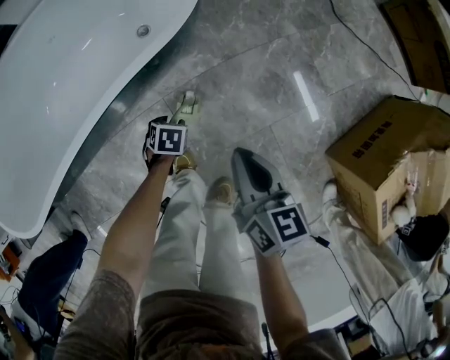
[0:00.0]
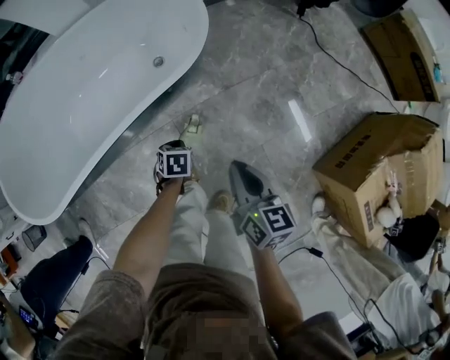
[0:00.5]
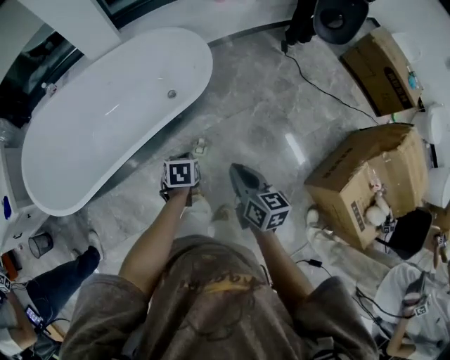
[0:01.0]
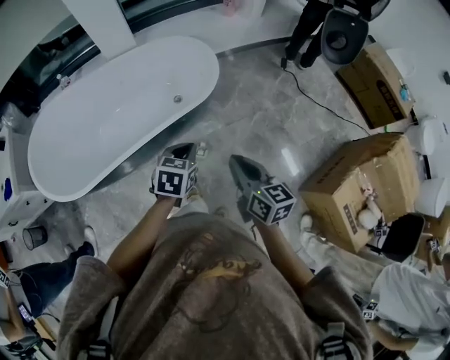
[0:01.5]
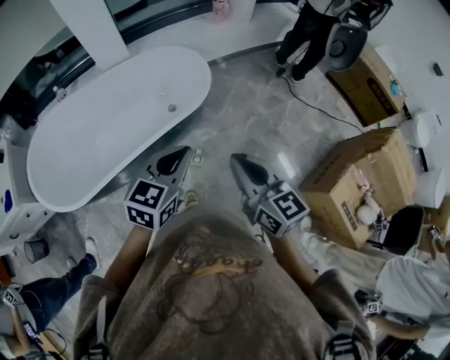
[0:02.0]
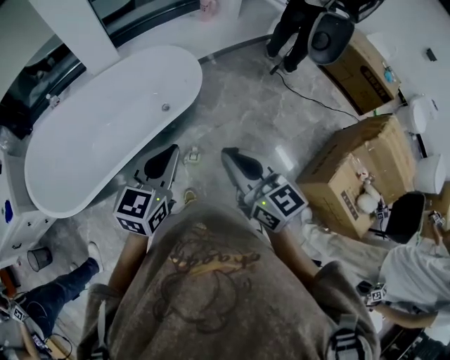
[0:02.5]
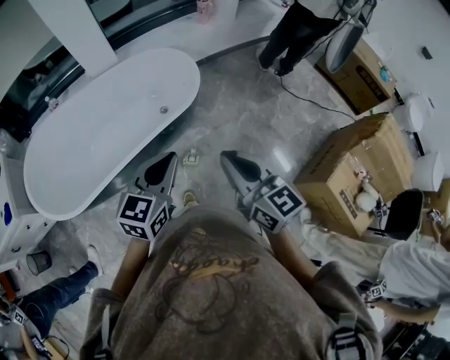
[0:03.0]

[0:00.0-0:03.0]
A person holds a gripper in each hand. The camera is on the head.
0:00.0 to 0:01.5: The right gripper heads upward, covering some 30 cm; the left gripper heads upward, covering about 50 cm, tilts its fingers about 30 degrees upward, and closes up.
0:01.5 to 0:03.0: Both grippers travel together upward, about 15 cm. The left gripper changes its angle by about 30 degrees.

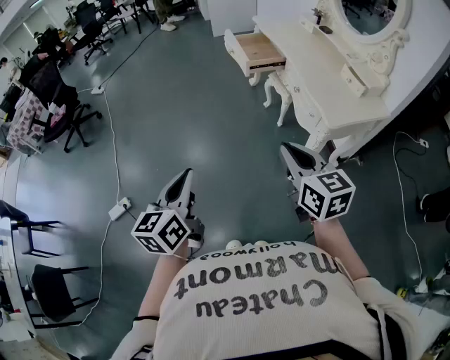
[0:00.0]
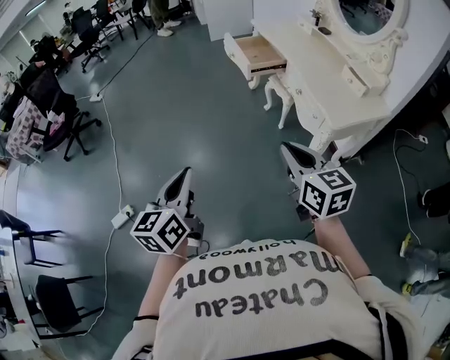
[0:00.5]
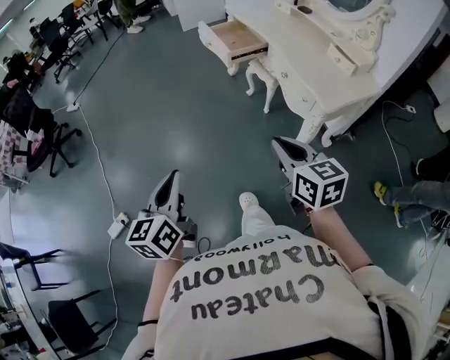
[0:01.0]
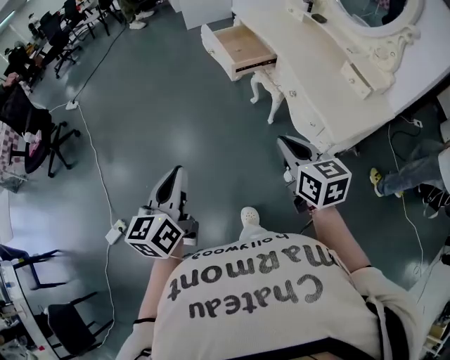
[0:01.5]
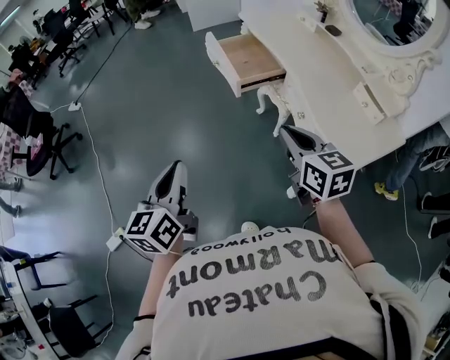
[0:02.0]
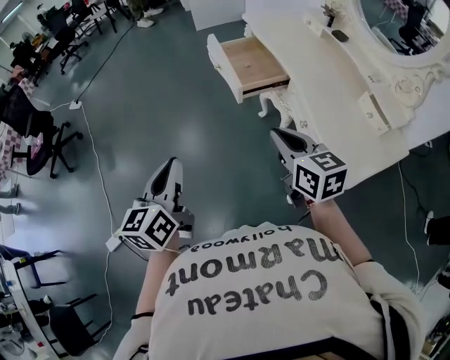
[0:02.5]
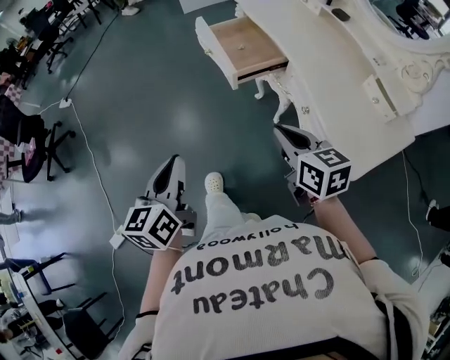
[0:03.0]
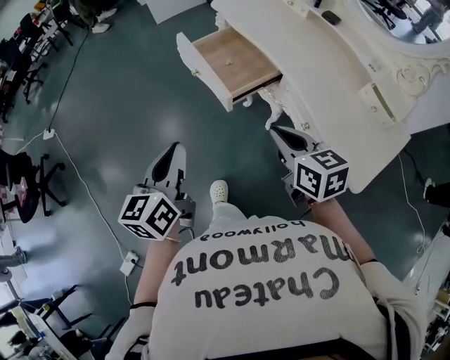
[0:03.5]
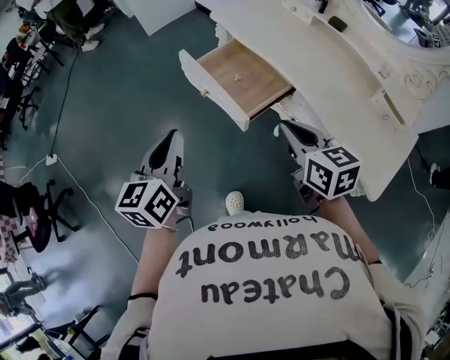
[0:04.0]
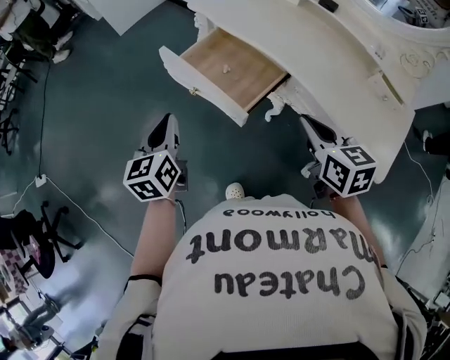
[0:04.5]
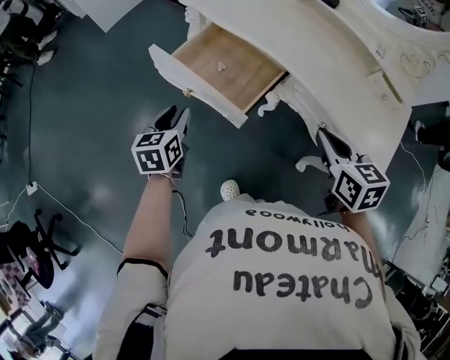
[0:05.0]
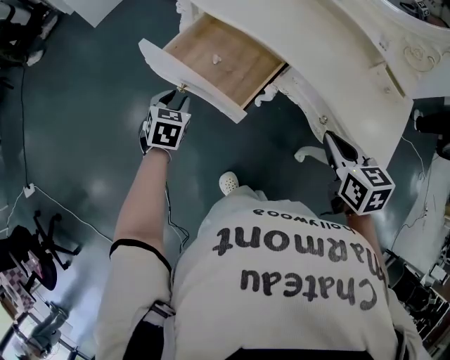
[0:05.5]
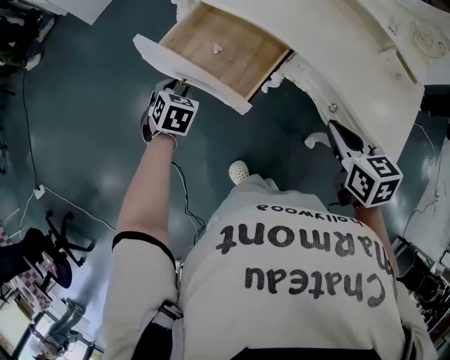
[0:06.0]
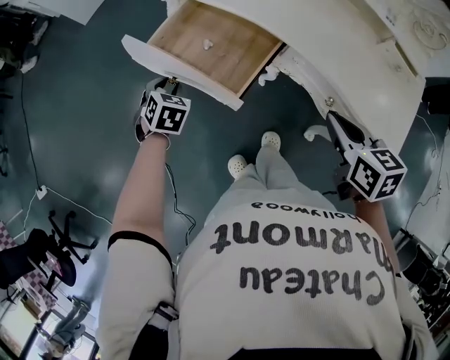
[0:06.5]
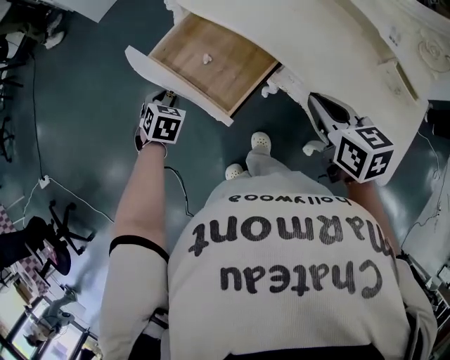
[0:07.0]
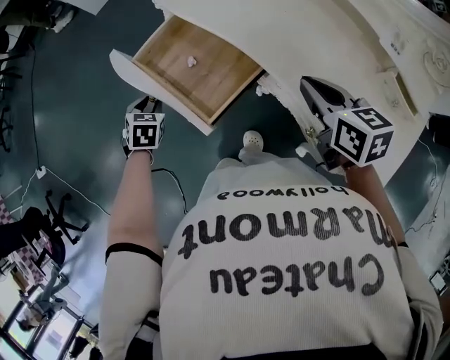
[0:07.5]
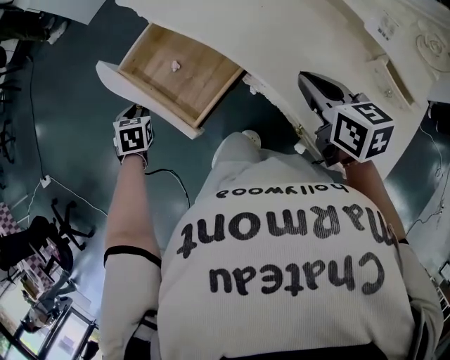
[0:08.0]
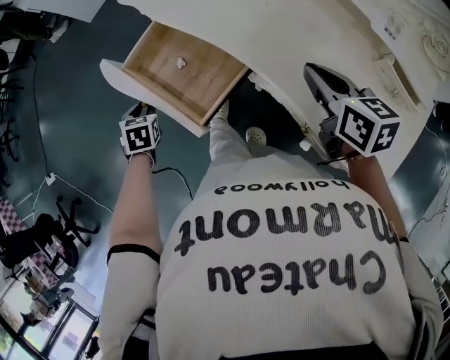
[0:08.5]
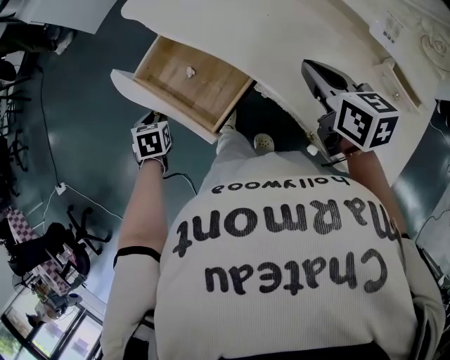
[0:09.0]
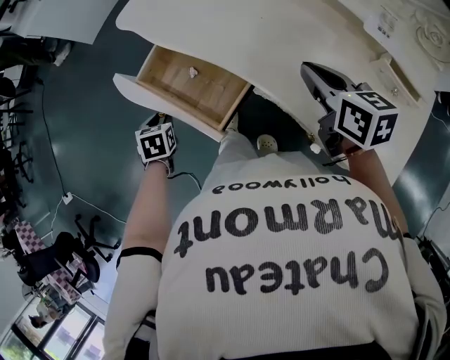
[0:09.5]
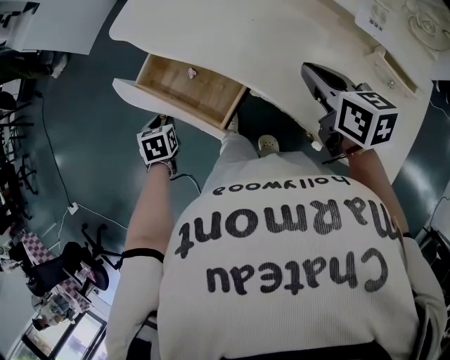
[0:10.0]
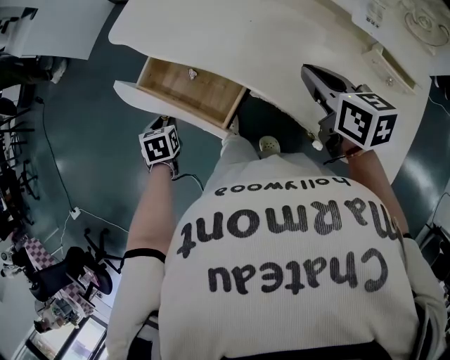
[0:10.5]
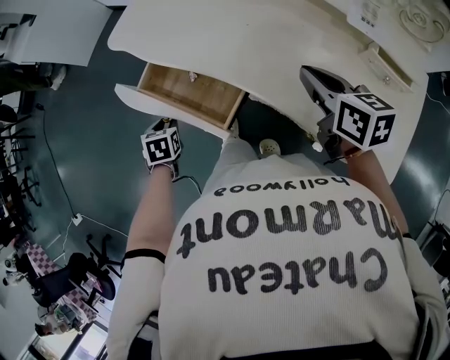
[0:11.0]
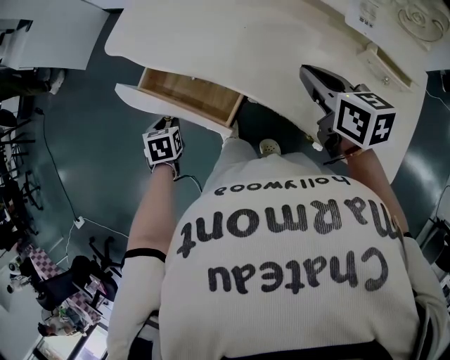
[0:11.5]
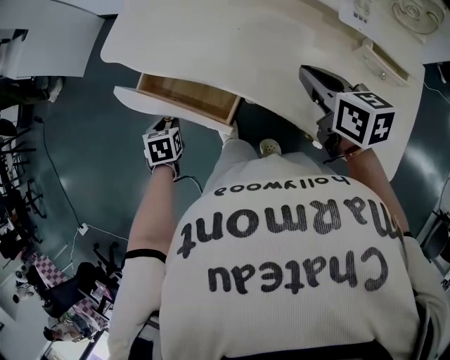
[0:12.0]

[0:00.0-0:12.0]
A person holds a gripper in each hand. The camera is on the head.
0:00.0 to 0:02.0: Both grippers move forward, roughly 30 cm.
0:02.0 to 0:04.0: The left gripper goes approximately 35 cm forward, and turns by about 20 degrees. Meanwhile the right gripper moves forward, roughly 25 cm.
0:04.0 to 0:06.0: The left gripper moves downward and forward, approximately 35 cm, tilts its fingers some 40 degrees downward, and opens, while the right gripper shifts about 10 cm to the right and downward, and turns by about 30 degrees.
0:06.0 to 0:08.0: The right gripper goes about 20 cm forward and to the right. Meanwhile the left gripper swivels approximately 30 degrees.
0:08.0 to 0:10.0: The left gripper shifts some 5 cm to the right.
0:10.0 to 0:12.0: The grippers move only a little.

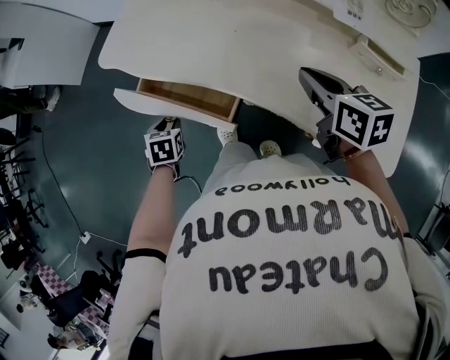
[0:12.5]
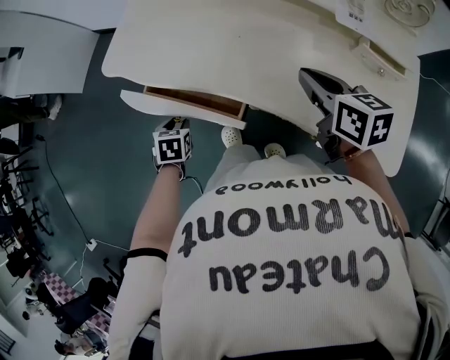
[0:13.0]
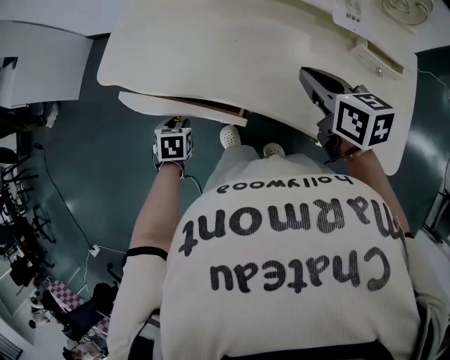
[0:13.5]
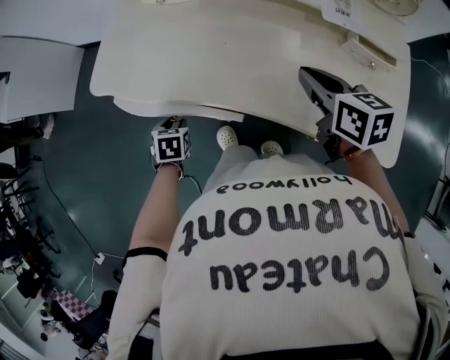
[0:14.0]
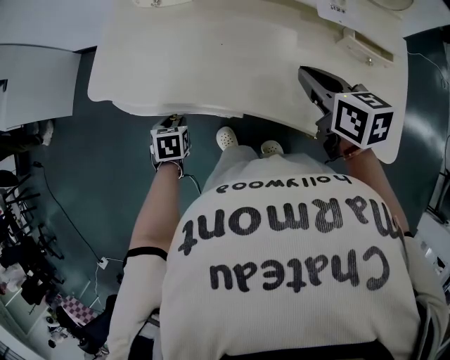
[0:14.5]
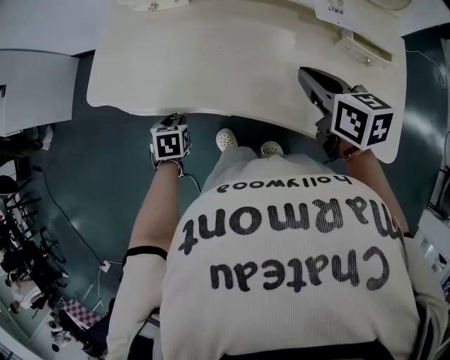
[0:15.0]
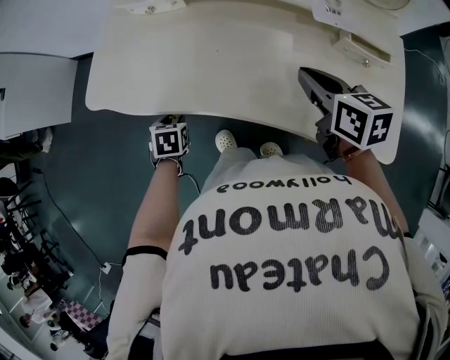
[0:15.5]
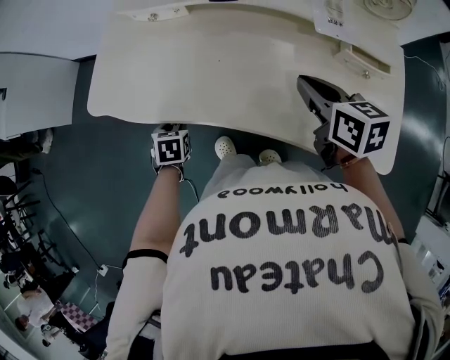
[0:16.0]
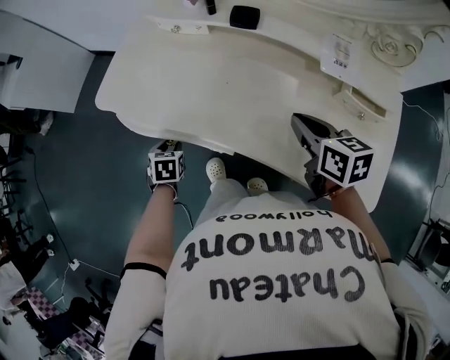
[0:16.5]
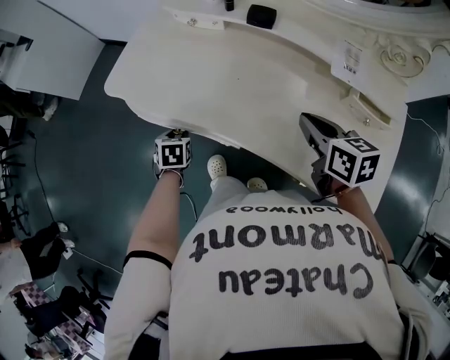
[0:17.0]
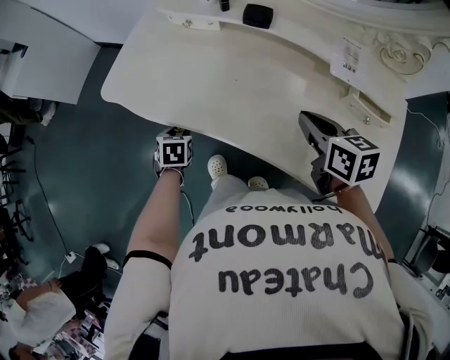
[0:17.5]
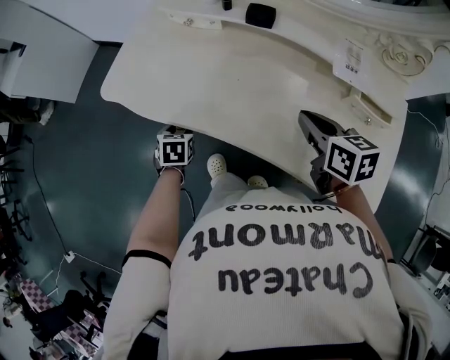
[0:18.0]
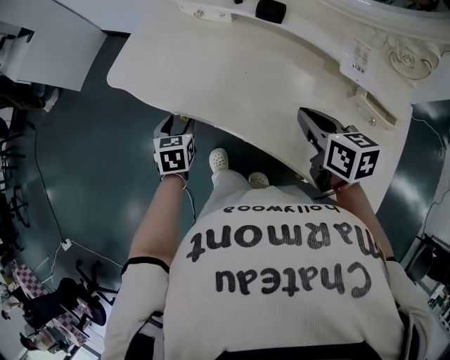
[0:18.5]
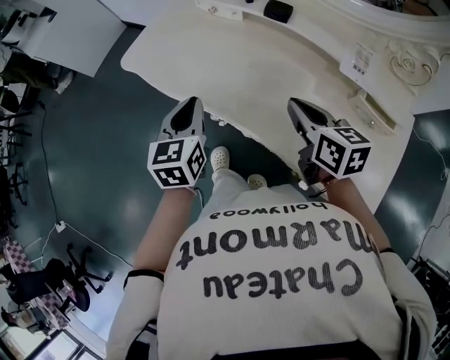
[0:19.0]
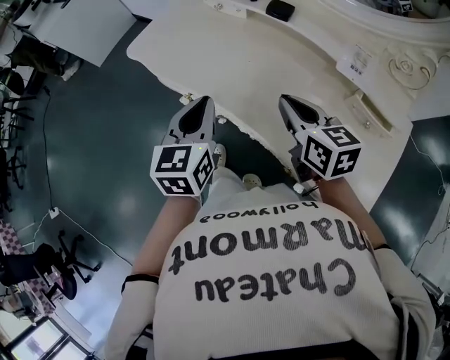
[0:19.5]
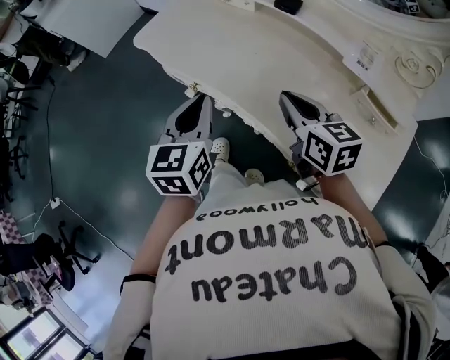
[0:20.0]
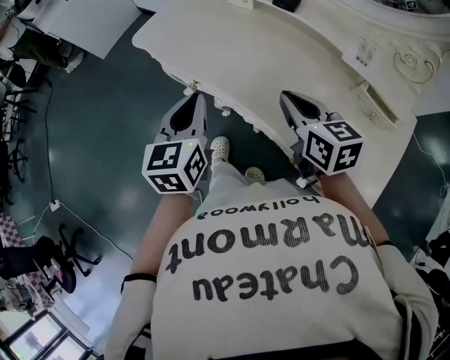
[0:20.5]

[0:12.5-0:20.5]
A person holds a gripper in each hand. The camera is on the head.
0:12.5 to 0:14.5: The left gripper moves forward and to the right, roughly 10 cm.
0:14.5 to 0:16.5: There are only small adjustments of the grippers.
0:16.5 to 0:18.5: The left gripper goes roughly 5 cm upward, and opens up.
0:18.5 to 0:20.5: The left gripper goes approximately 20 cm upward and backward, changes its angle by some 30 degrees, and closes its fingers. Meanwhile the right gripper heads to the left, covering roughly 5 cm.

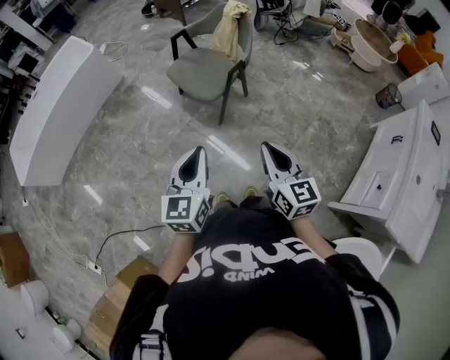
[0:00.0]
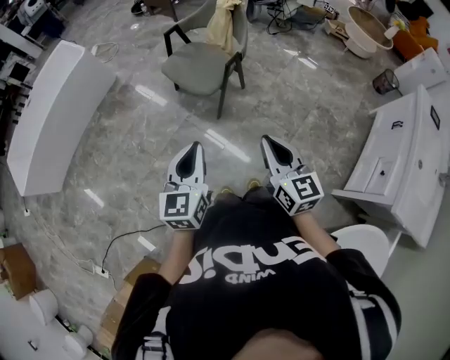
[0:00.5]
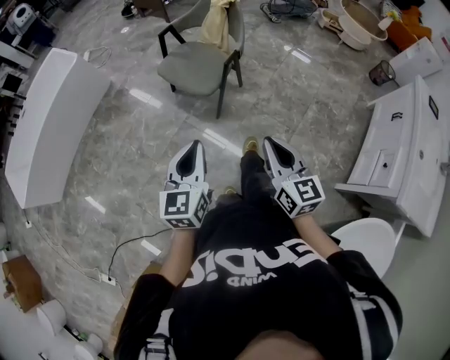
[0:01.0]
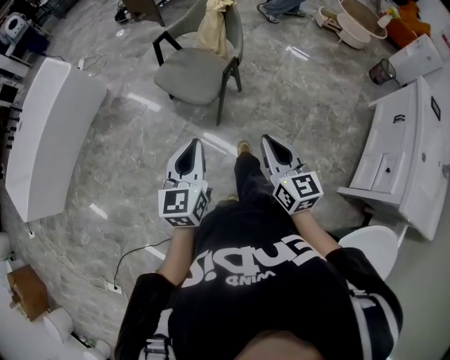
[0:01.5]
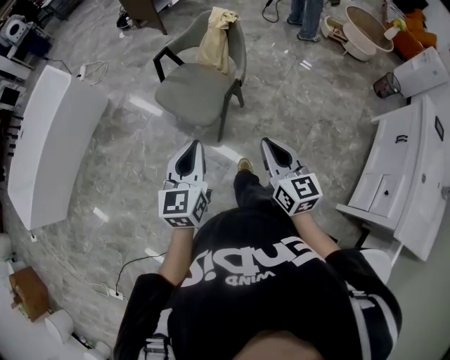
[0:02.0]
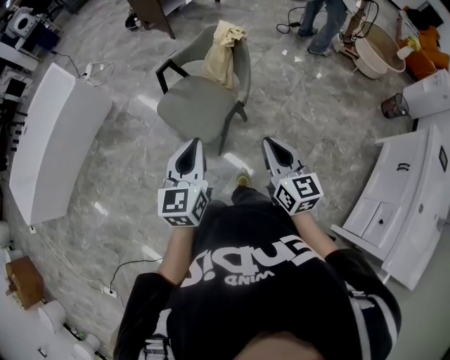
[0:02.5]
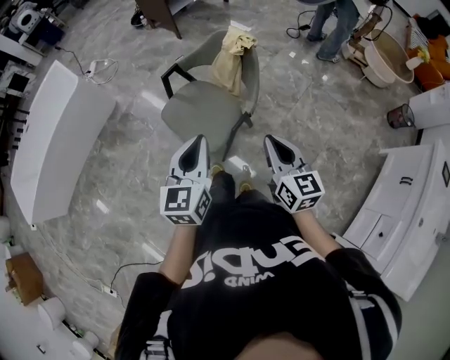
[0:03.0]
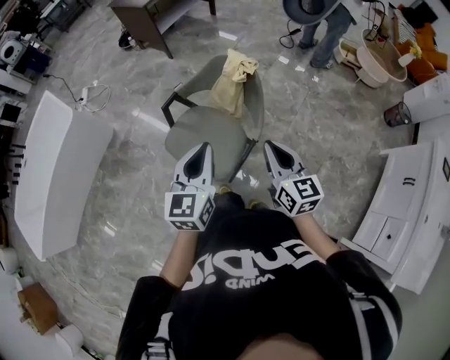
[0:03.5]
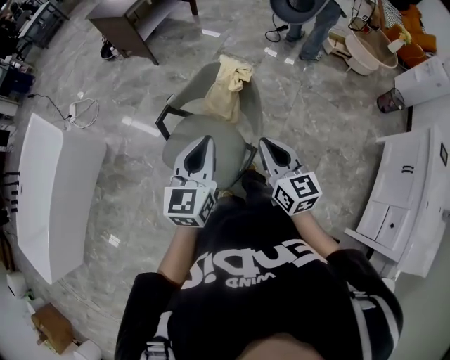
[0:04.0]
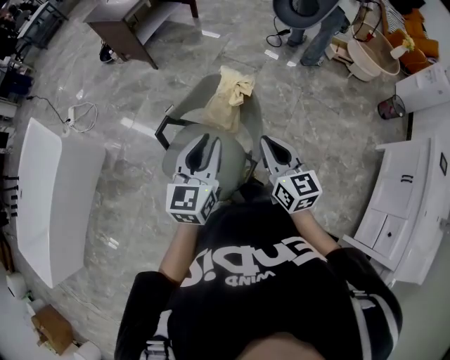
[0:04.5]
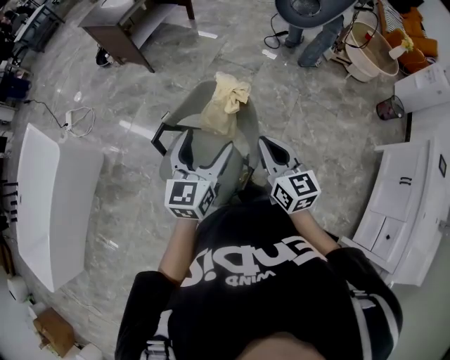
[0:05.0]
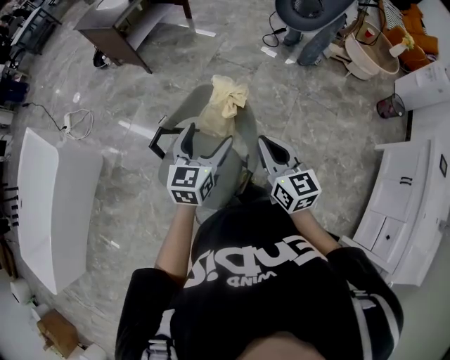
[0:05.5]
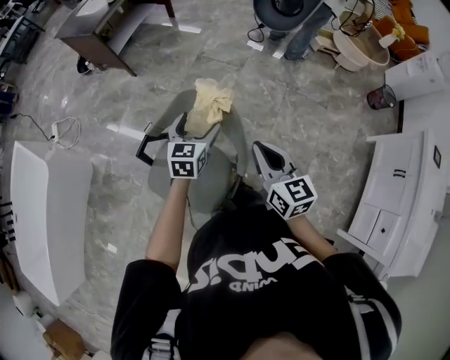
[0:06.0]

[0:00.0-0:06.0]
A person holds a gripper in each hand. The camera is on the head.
0:00.0 to 0:02.0: The two grippers go approximately 20 cm forward.
0:02.0 to 0:04.0: Both grippers travel together forward, approximately 35 cm.
0:04.0 to 0:06.0: The left gripper is displaced forward and downward by about 30 cm, and opens its fingers. Meanwhile the right gripper travels forward and to the right by roughly 15 cm.
